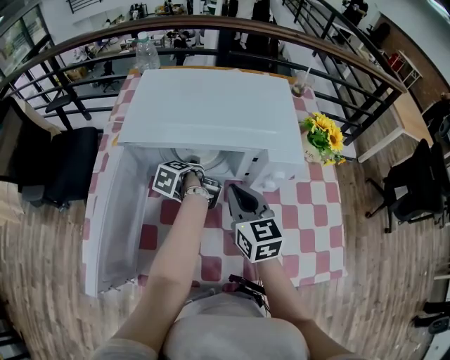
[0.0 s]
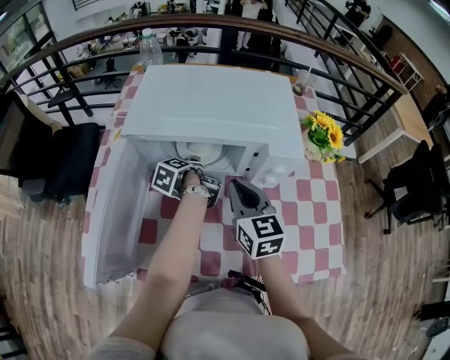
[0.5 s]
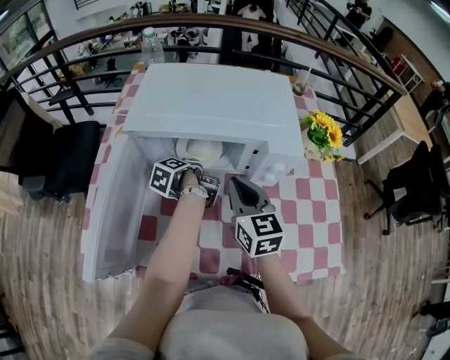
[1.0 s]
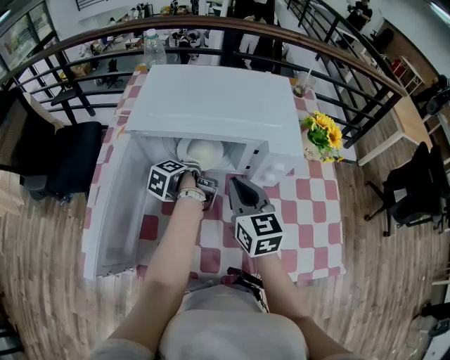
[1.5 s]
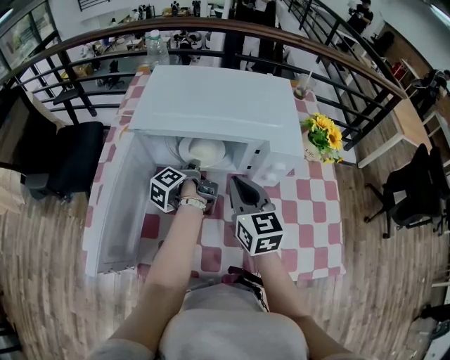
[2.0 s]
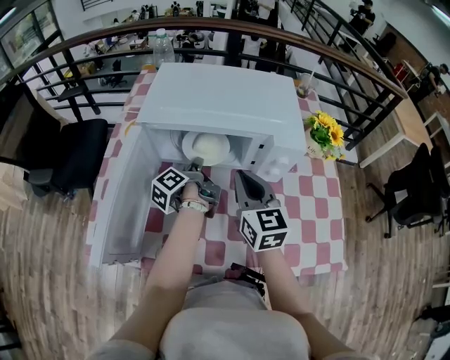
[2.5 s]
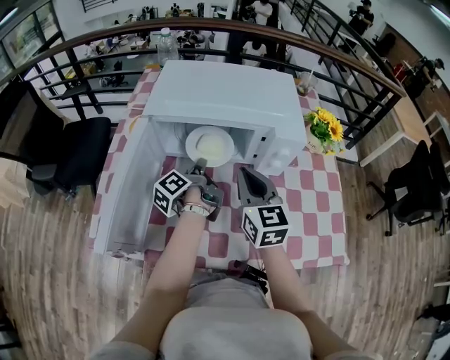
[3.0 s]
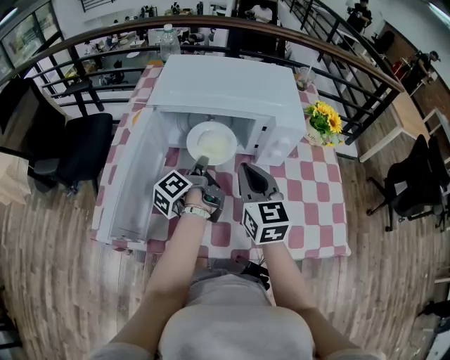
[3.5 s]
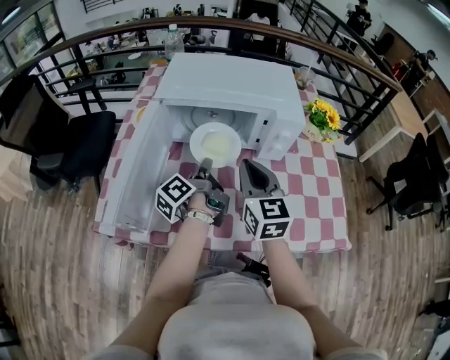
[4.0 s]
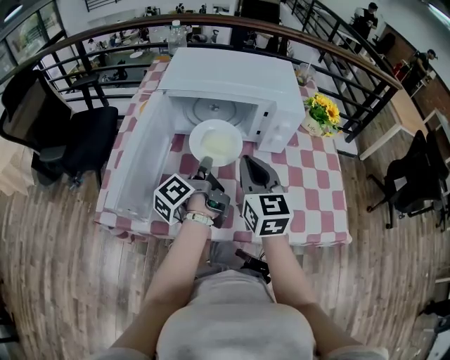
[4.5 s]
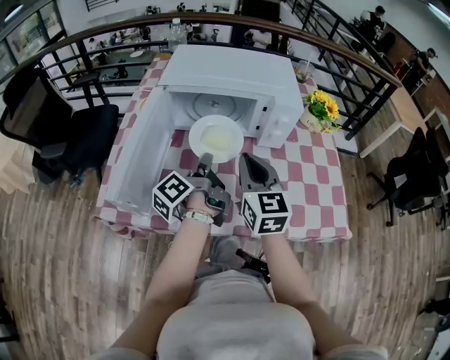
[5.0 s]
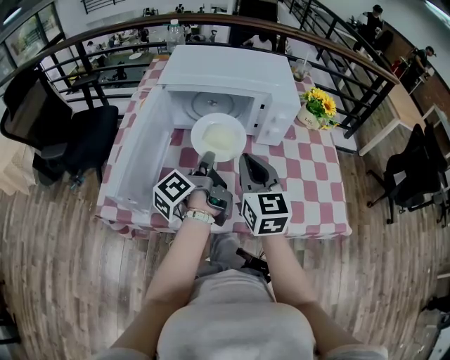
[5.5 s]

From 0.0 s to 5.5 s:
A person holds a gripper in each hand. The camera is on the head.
From 0.0 s to 2.0 s: The left gripper moves upward, some 5 cm, turns by about 20 degrees, and closes up.
From 2.0 s to 3.5 s: The right gripper goes roughly 5 cm backward. Meanwhile the left gripper travels backward and upward by approximately 10 cm.
From 3.5 s to 5.5 s: The left gripper is displaced backward and upward by about 10 cm; the right gripper travels backward by approximately 10 cm.

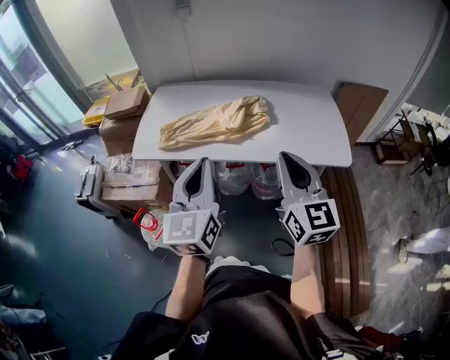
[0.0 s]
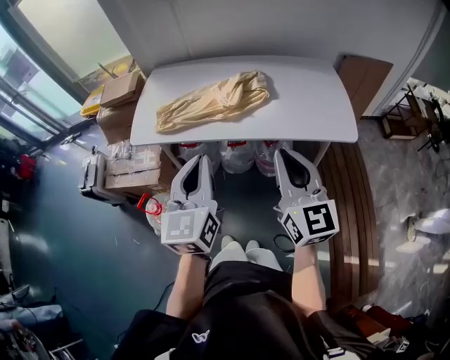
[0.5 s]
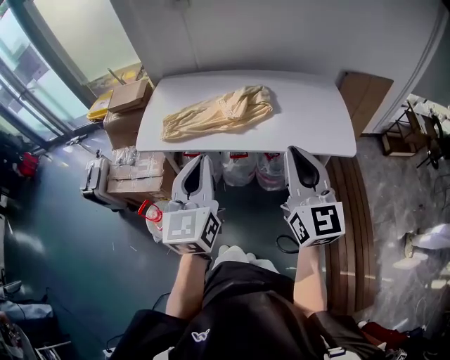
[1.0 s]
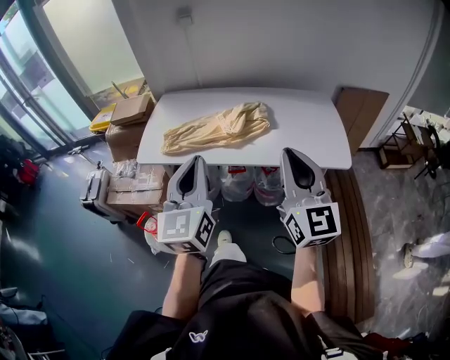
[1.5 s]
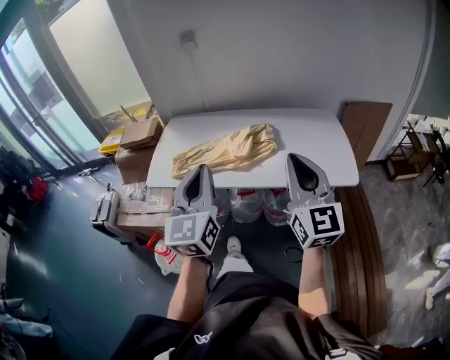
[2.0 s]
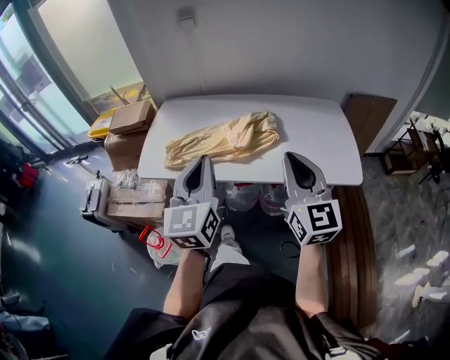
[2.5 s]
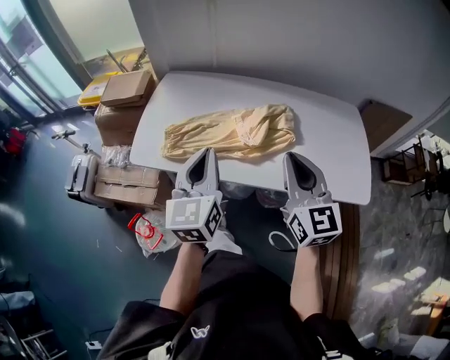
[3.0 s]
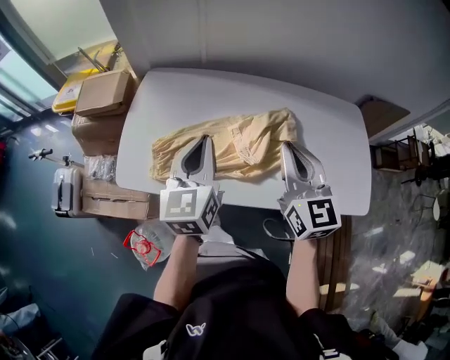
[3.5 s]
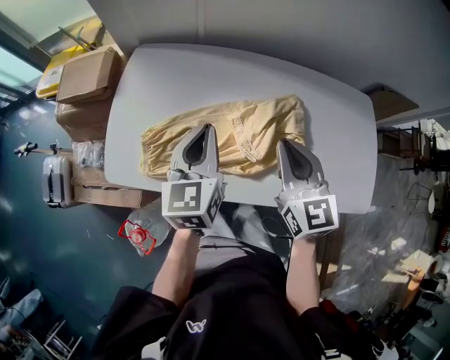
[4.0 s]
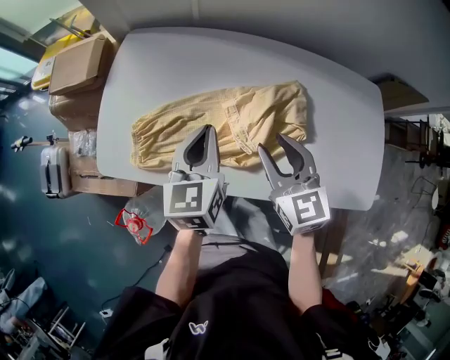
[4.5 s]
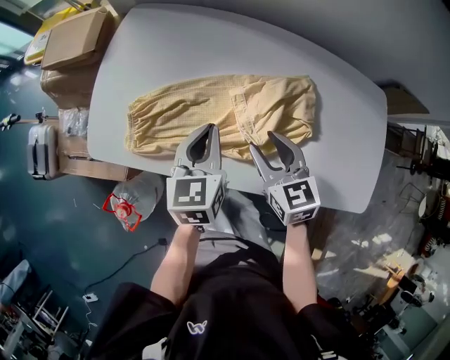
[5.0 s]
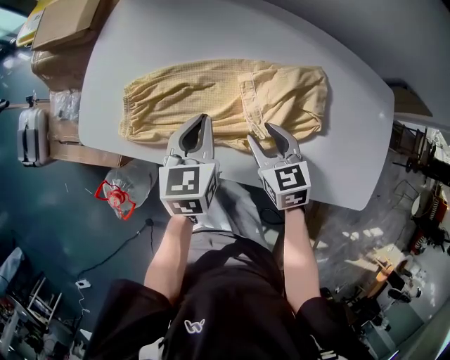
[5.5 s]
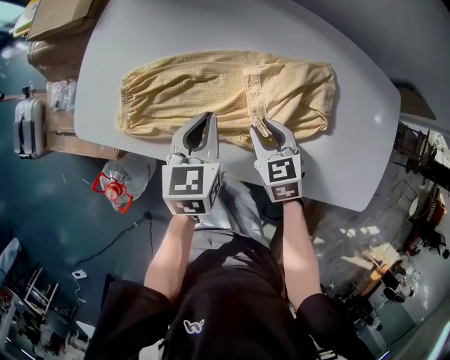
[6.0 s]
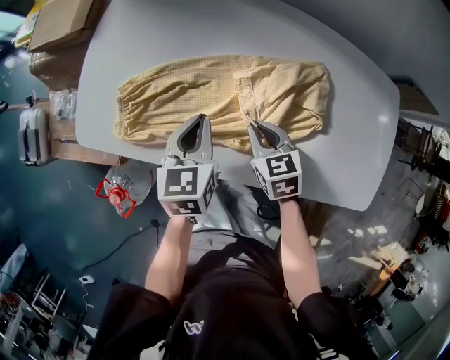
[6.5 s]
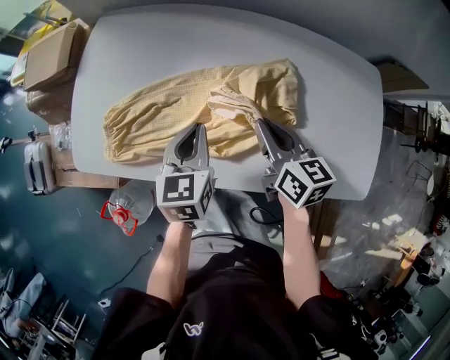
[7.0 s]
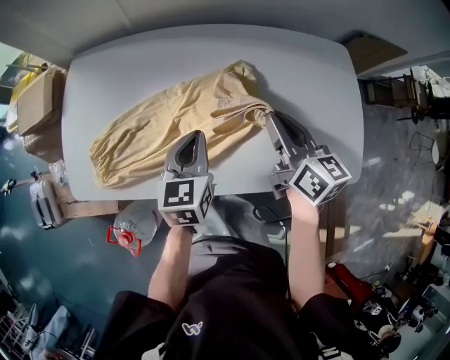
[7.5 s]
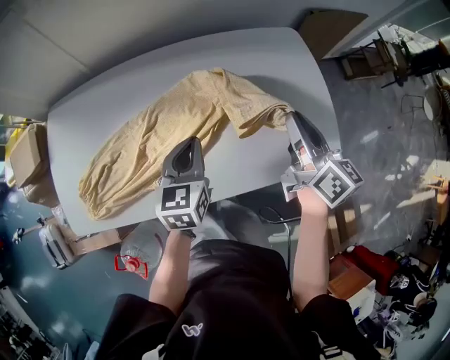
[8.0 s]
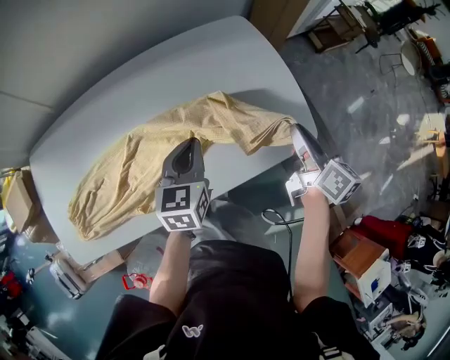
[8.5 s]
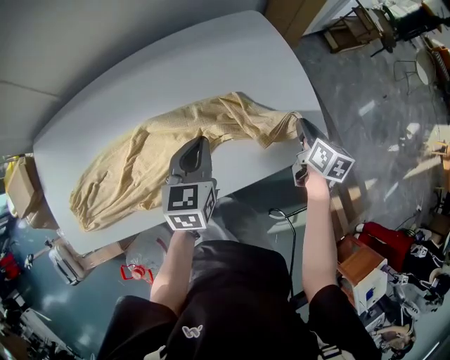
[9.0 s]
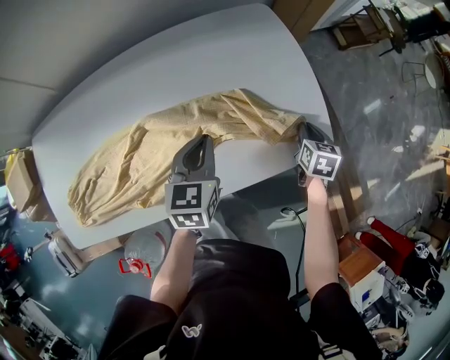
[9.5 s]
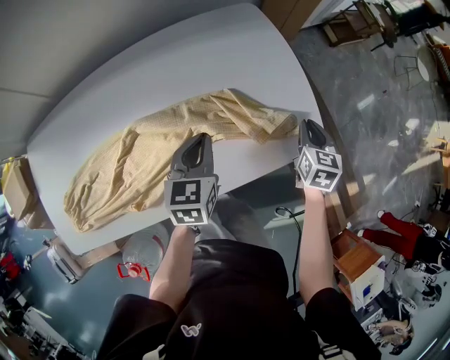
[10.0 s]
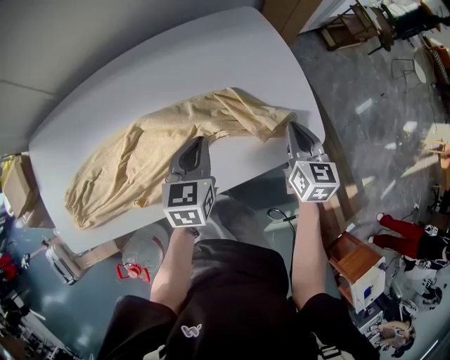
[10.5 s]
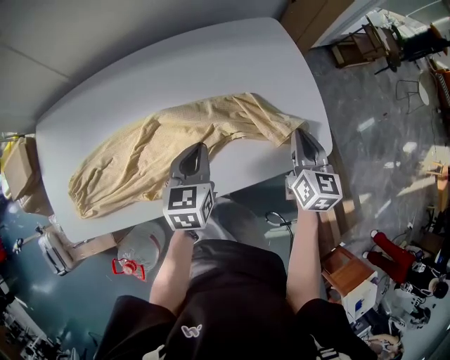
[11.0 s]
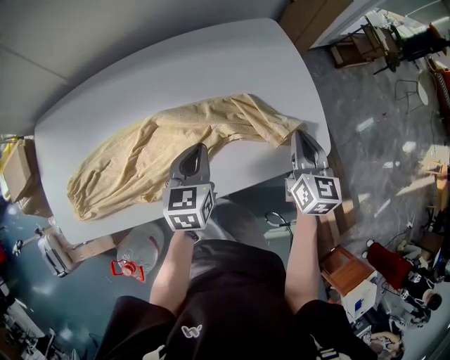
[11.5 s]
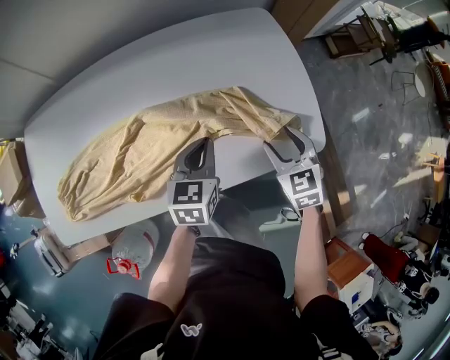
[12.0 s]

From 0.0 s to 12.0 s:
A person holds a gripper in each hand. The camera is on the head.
From 0.0 s to 2.0 s: The right gripper heads upward, covering approximately 5 cm.
From 2.0 s to 4.0 s: The pair of grippers is taken forward, about 40 cm. Both grippers move downward, roughly 20 cm. The left gripper changes its angle by about 20 degrees. The right gripper rotates roughly 30 degrees.
From 4.0 s to 6.0 s: The left gripper shifts about 15 cm downward, and rotates approximately 20 degrees, while the right gripper shifts about 25 cm downward, angles its fingers downward, by about 40 degrees, and opens.
From 6.0 s to 8.0 s: The right gripper changes place by some 40 cm, and tips its fingers upward by approximately 40 degrees. Meanwhile the left gripper ends up about 30 cm from where it was, and turns by some 30 degrees.
From 8.0 s to 10.0 s: The right gripper heads to the right and downward, covering approximately 30 cm, and turns by about 50 degrees. The left gripper heads to the right, covering roughly 15 cm.
From 10.0 s to 12.0 s: The right gripper travels to the left and backward by roughly 15 cm, swivels approximately 40 degrees, and opens.

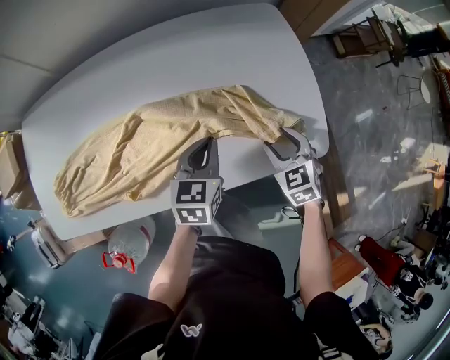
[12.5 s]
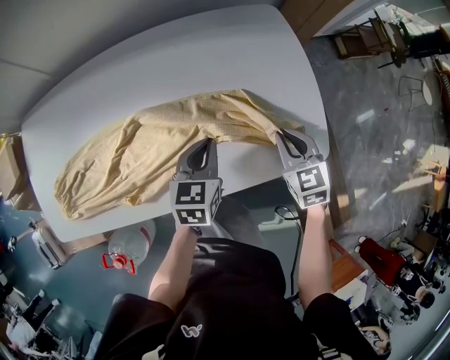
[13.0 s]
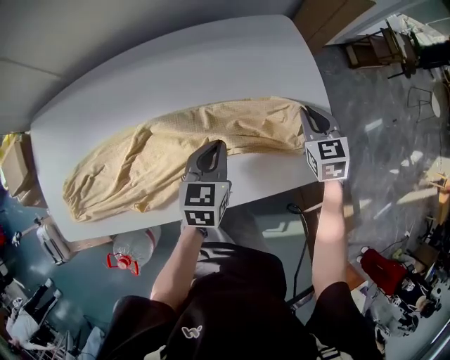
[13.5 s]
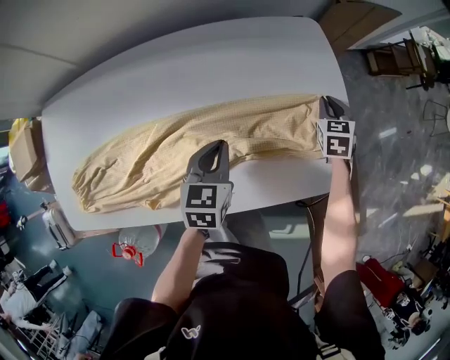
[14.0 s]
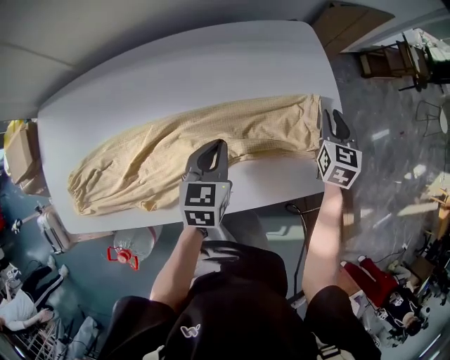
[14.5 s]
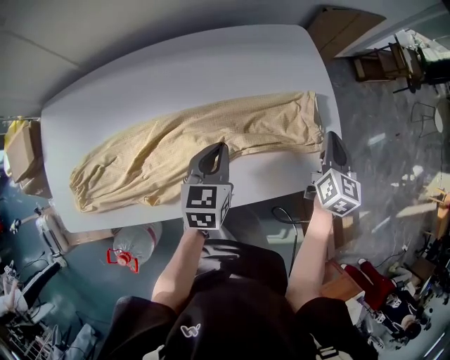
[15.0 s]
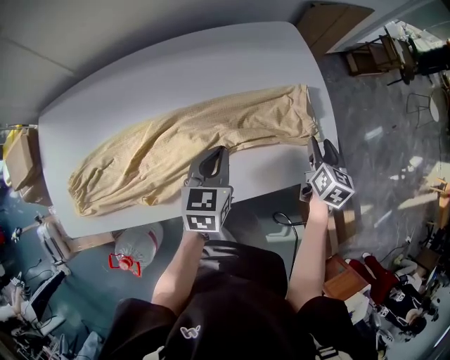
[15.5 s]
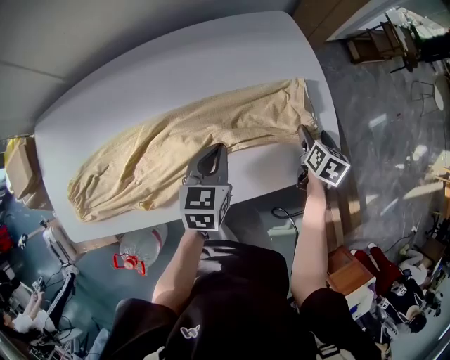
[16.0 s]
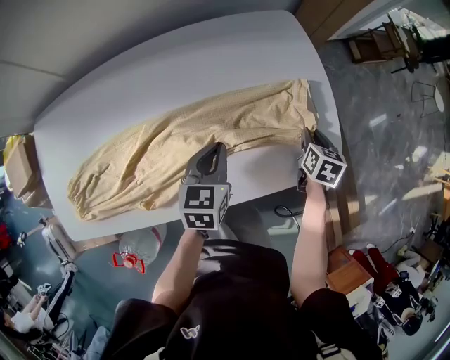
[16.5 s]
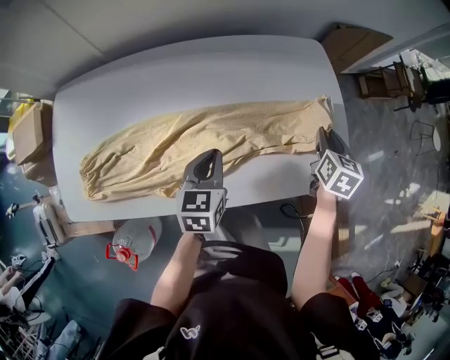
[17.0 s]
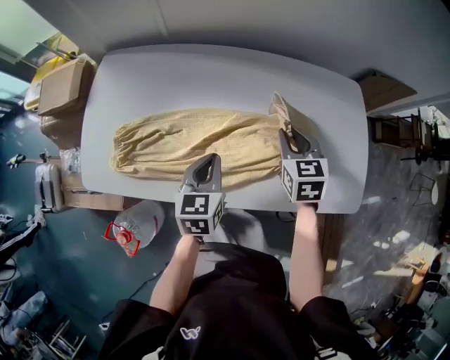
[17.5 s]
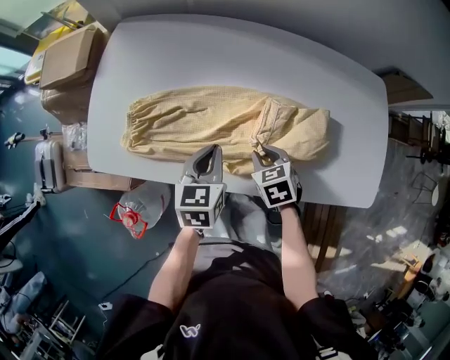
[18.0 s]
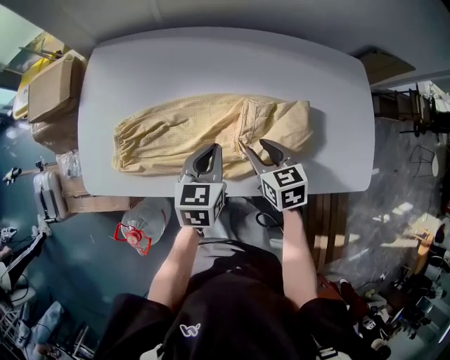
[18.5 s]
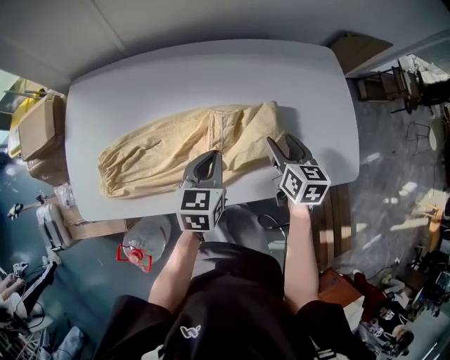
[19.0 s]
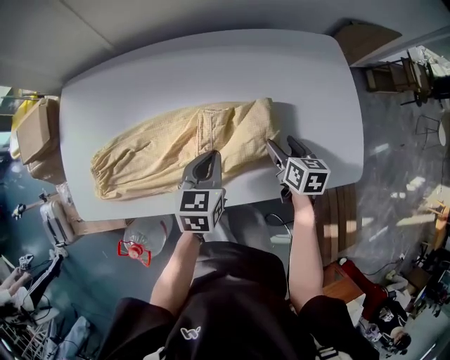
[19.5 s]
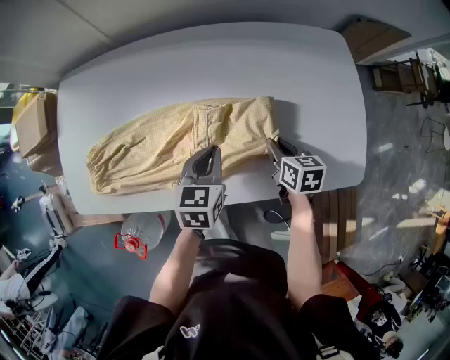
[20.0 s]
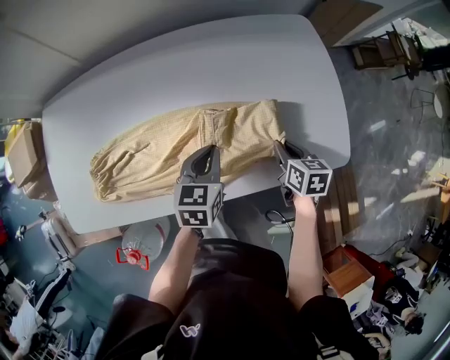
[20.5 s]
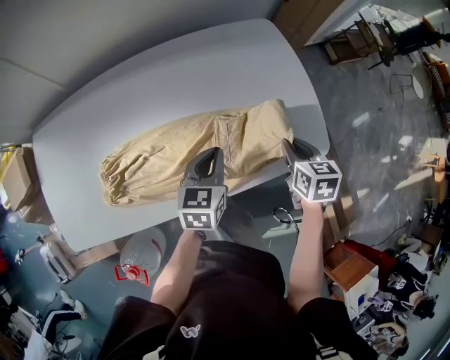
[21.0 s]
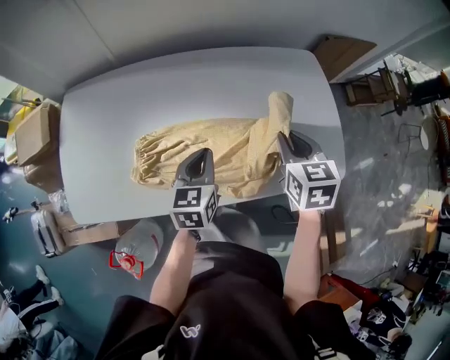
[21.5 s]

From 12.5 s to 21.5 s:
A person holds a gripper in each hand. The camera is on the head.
From 12.5 s to 14.5 s: The left gripper moves forward, about 5 cm; the right gripper shifts about 20 cm forward, rotates some 30 degrees, and closes up.
From 14.5 s to 17.0 s: The left gripper is displaced backward and to the left by about 10 cm. Meanwhile the right gripper goes up and down, approximately 15 cm each way, reversing 2 times, and opens, then closes again.
From 17.0 s to 19.5 s: The right gripper goes up and down, about 15 cm each way, reversing 2 times, rotates some 20 degrees, and opens.
From 19.5 s to 21.5 s: The left gripper shifts roughly 5 cm upward, and goes to the right and returns, about 15 cm each way, while the right gripper heads upward, covering about 20 cm, rotates roughly 20 degrees, and closes up.
